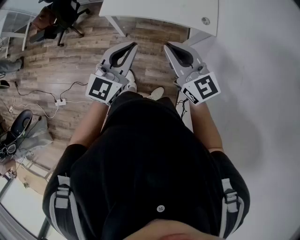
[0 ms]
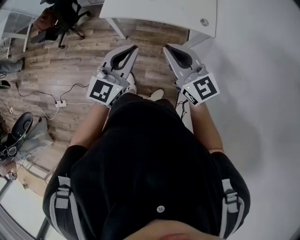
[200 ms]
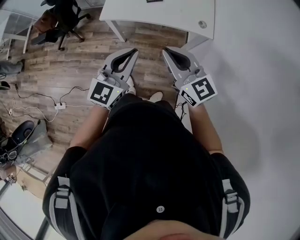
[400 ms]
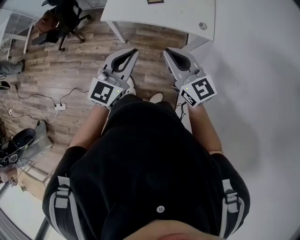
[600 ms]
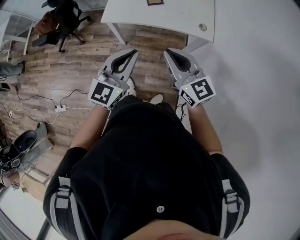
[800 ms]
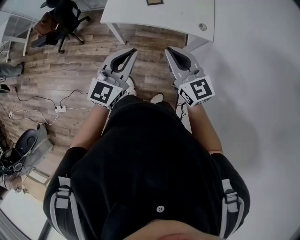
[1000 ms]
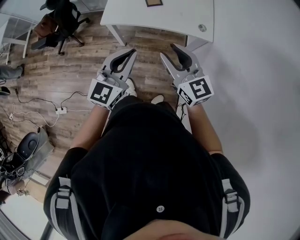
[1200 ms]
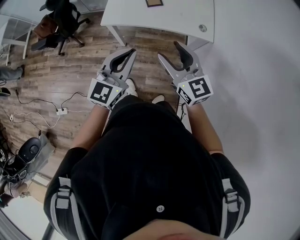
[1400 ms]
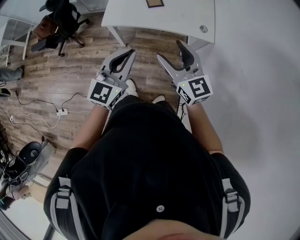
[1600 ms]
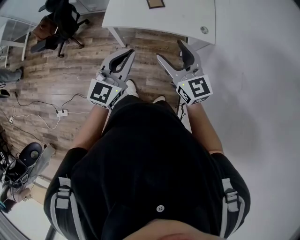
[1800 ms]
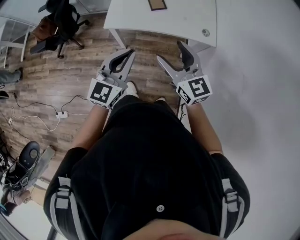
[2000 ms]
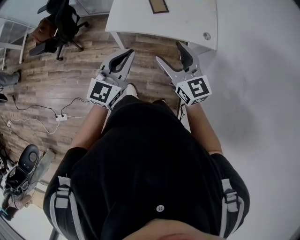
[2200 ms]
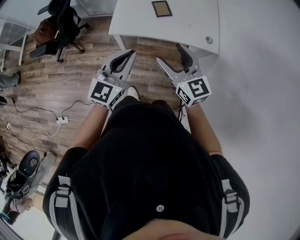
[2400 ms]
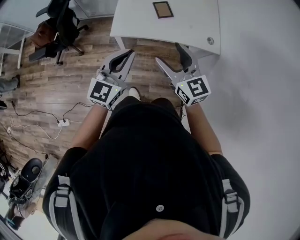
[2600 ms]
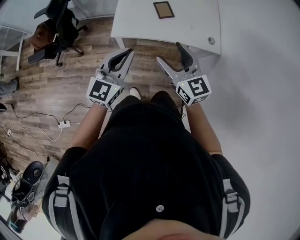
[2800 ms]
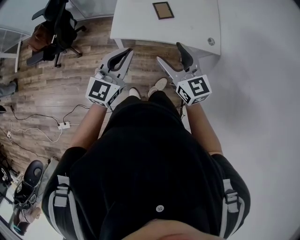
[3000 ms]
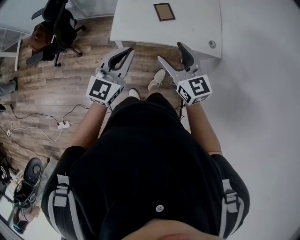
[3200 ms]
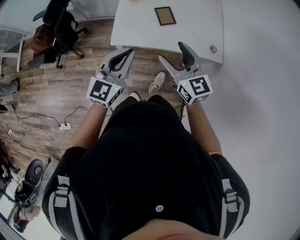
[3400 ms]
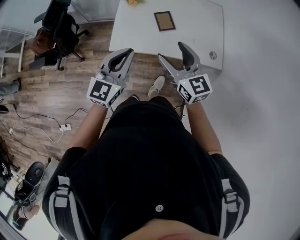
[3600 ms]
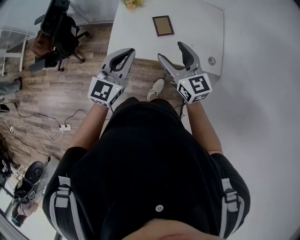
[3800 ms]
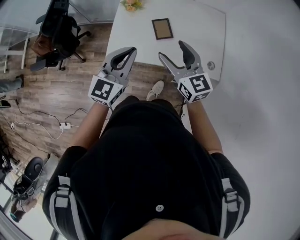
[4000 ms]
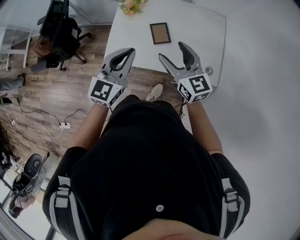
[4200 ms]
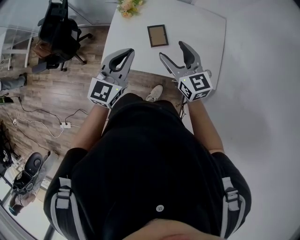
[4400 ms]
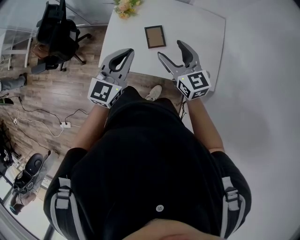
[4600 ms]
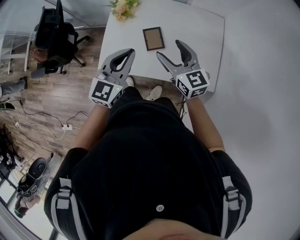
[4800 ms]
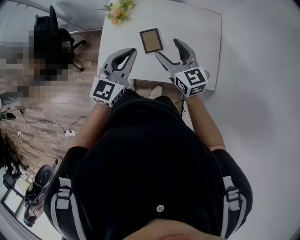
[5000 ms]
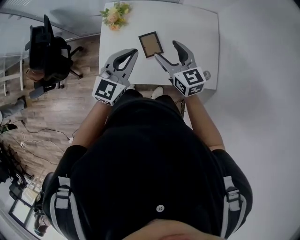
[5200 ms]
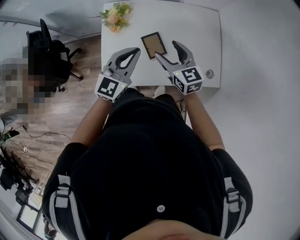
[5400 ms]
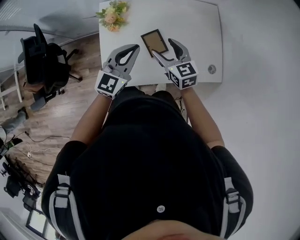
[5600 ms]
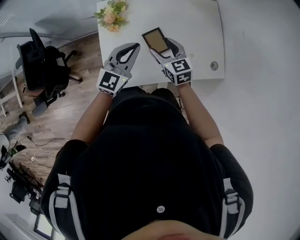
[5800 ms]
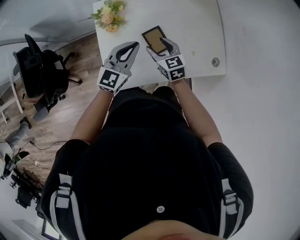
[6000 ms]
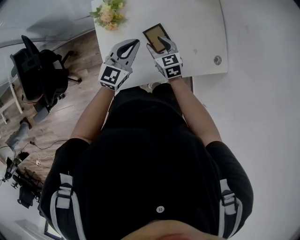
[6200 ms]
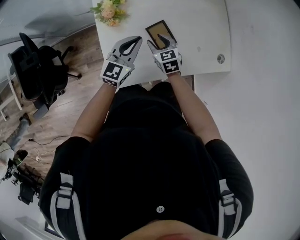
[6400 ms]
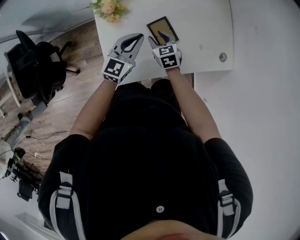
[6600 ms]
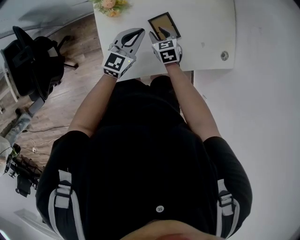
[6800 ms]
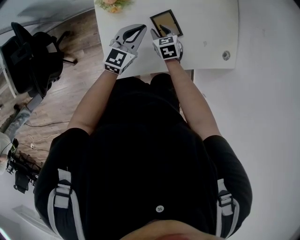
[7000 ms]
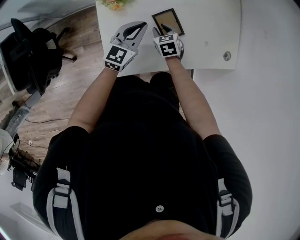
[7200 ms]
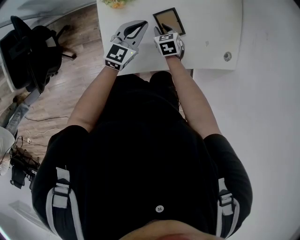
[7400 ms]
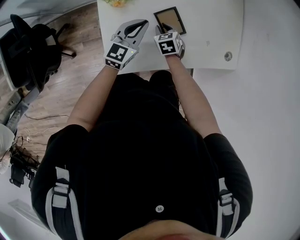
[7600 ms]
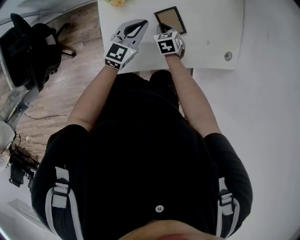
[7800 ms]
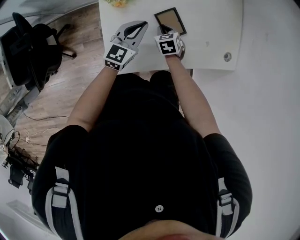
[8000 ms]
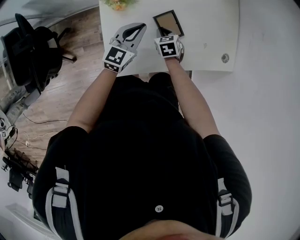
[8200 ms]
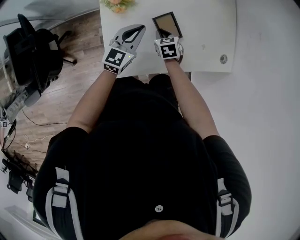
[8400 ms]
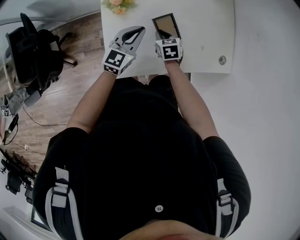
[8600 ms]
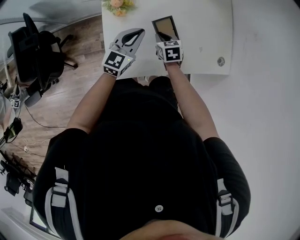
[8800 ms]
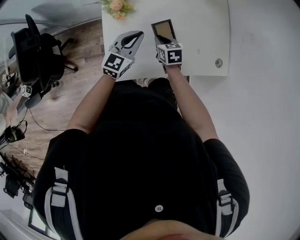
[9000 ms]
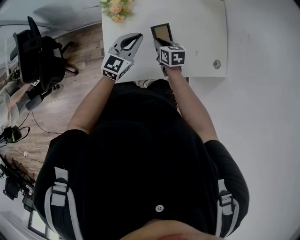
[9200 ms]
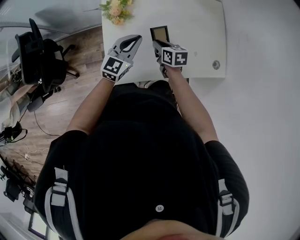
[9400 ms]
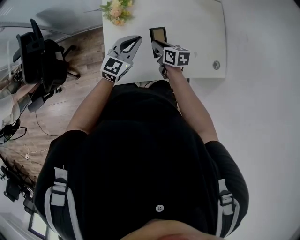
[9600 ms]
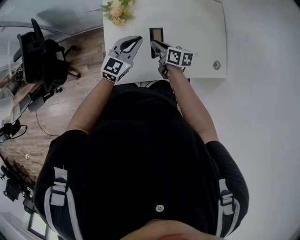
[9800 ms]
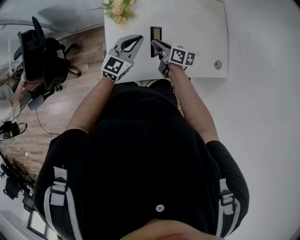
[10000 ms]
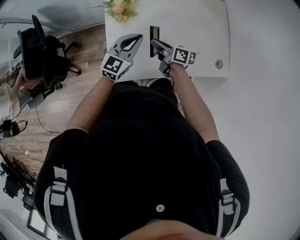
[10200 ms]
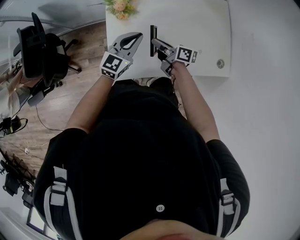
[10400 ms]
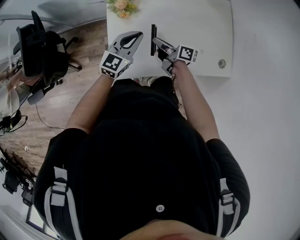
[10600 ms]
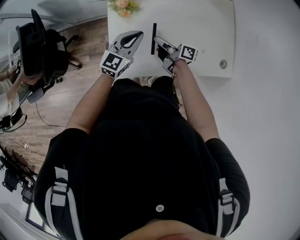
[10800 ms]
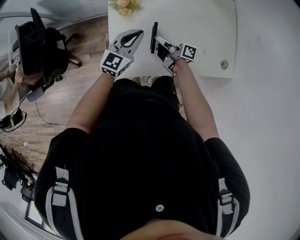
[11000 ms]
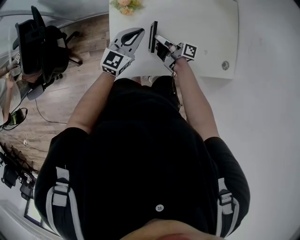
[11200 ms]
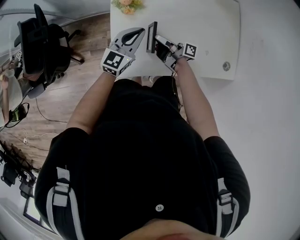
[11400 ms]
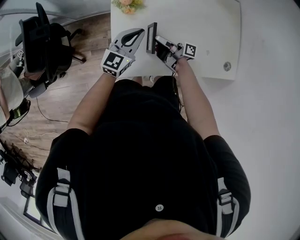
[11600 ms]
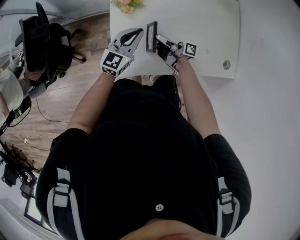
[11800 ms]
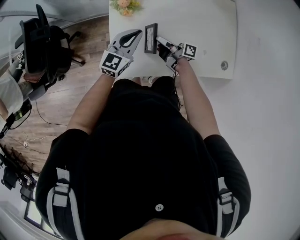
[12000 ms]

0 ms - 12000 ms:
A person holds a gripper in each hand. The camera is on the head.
0 ms - 1600 ms: The right gripper opens its fingers.
1600 ms - 3000 ms: Both grippers move to the left and forward, some 15 cm.
3000 ms - 4400 ms: The grippers both shift forward and to the right by approximately 25 cm.
4400 ms - 6000 ms: The left gripper heads forward and downward, covering about 25 cm, and turns by some 20 degrees. The right gripper is displaced downward, forward and to the left by some 25 cm, and rotates roughly 30 degrees.
6000 ms - 7600 ms: Both grippers move downward, about 15 cm. The right gripper rotates about 30 degrees, and closes its fingers.
7600 ms - 9000 ms: The grippers both shift upward by approximately 10 cm.
9000 ms - 10400 ms: The right gripper travels upward by roughly 5 cm, and tilts its fingers approximately 40 degrees upward.
10400 ms - 12000 ms: The right gripper rotates approximately 20 degrees.

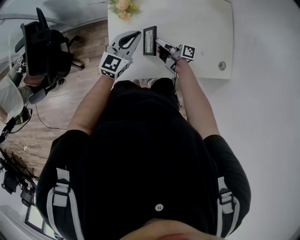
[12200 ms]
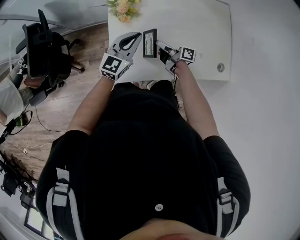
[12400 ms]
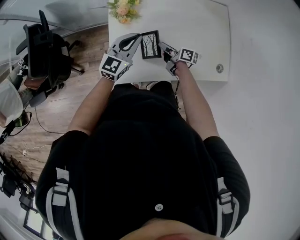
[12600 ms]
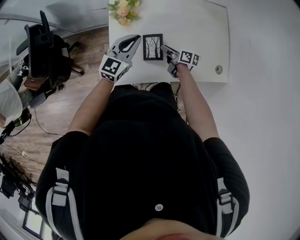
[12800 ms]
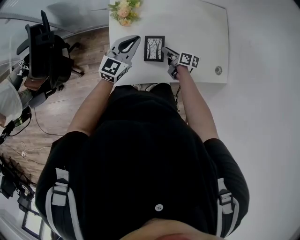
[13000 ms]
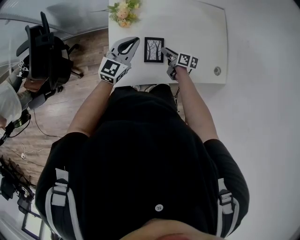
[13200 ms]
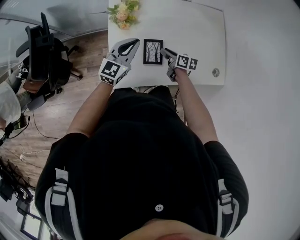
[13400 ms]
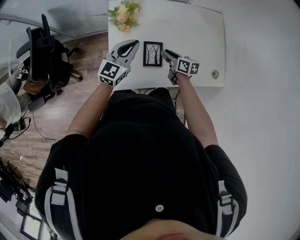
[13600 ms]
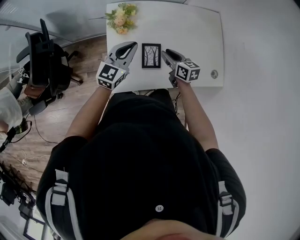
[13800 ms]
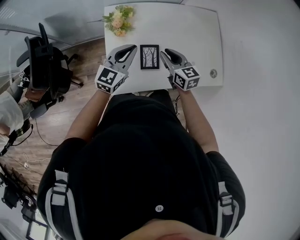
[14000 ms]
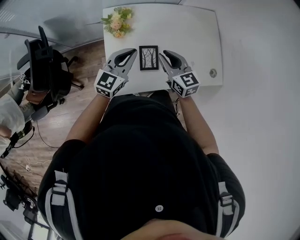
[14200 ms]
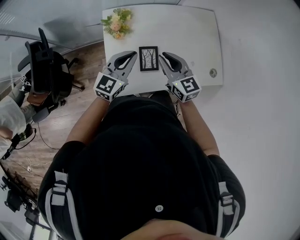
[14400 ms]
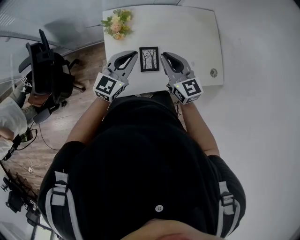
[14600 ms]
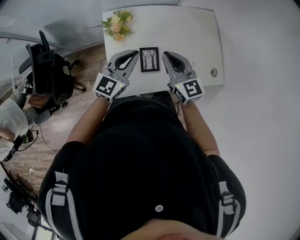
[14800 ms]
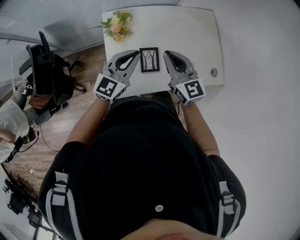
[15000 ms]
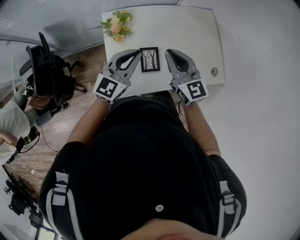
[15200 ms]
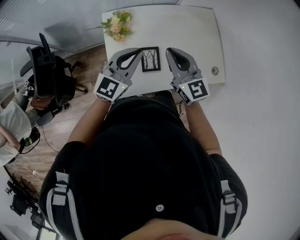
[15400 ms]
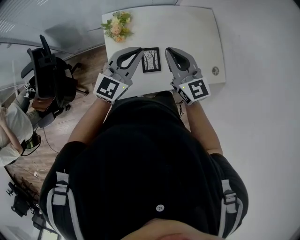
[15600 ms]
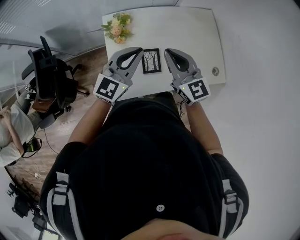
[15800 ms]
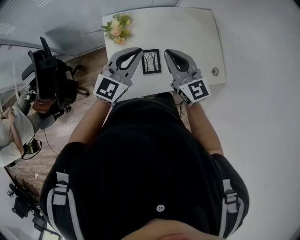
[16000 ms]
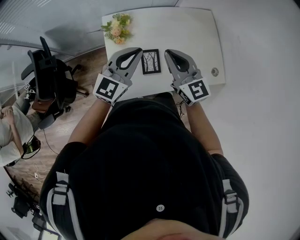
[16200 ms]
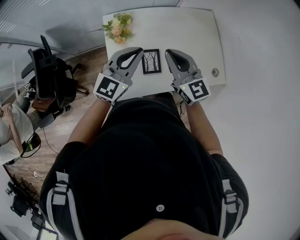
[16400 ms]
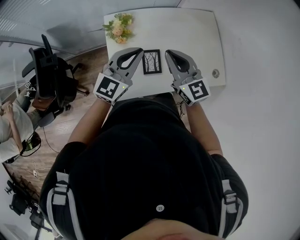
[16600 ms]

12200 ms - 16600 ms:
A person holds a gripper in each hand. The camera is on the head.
12200 ms - 13600 ms: The right gripper ends up about 5 cm from where it was, and changes its angle by approximately 40 degrees.
13600 ms - 15200 ms: The left gripper goes about 10 cm upward. Meanwhile the right gripper shifts about 25 cm upward, and rotates around the line of its fingers by approximately 40 degrees, counterclockwise from behind.
15200 ms - 16600 ms: There are only small adjustments of the grippers.

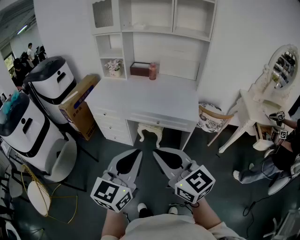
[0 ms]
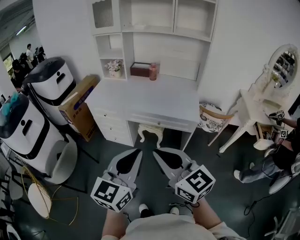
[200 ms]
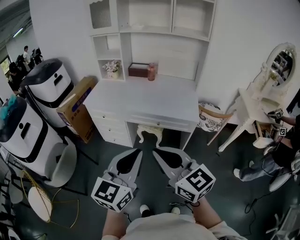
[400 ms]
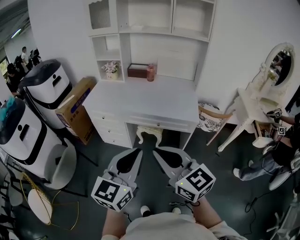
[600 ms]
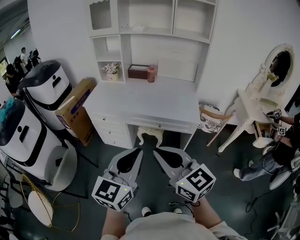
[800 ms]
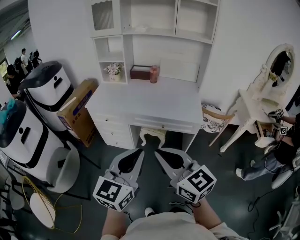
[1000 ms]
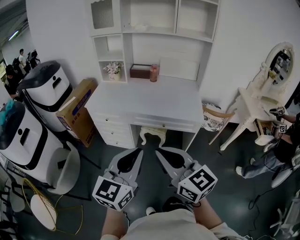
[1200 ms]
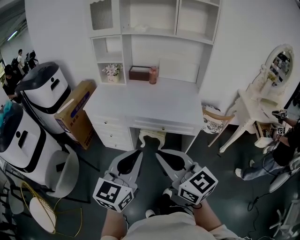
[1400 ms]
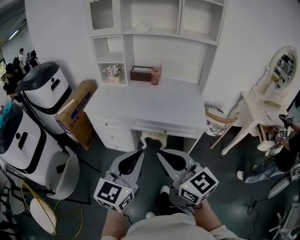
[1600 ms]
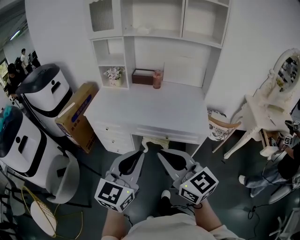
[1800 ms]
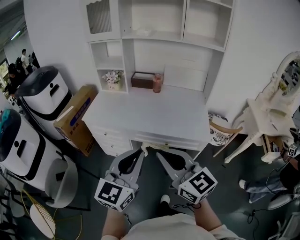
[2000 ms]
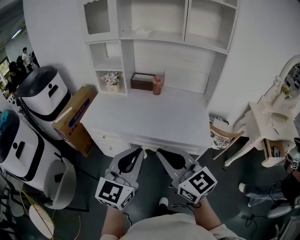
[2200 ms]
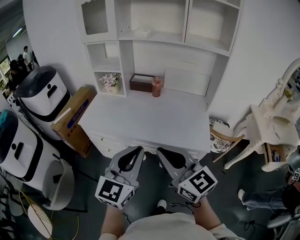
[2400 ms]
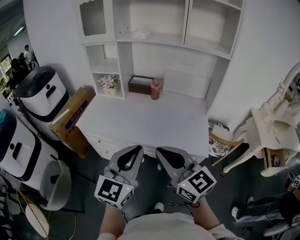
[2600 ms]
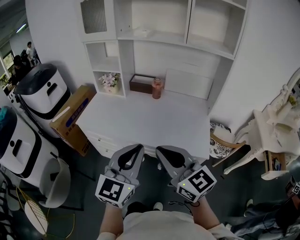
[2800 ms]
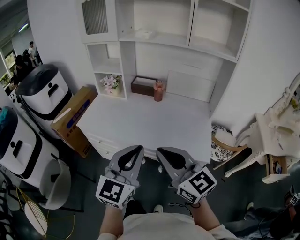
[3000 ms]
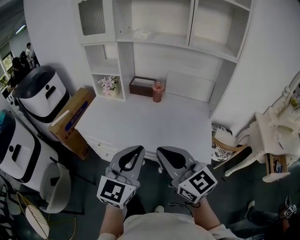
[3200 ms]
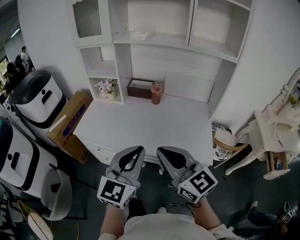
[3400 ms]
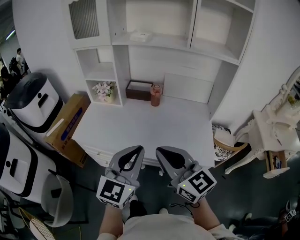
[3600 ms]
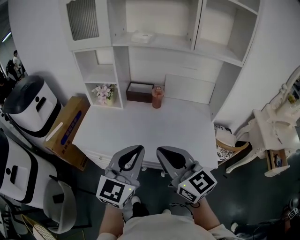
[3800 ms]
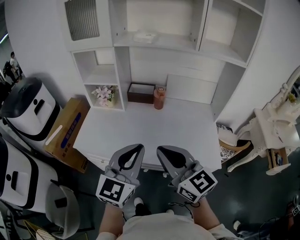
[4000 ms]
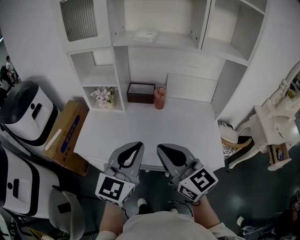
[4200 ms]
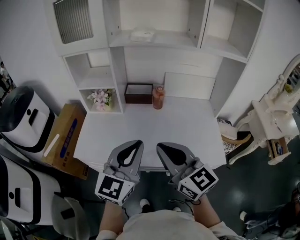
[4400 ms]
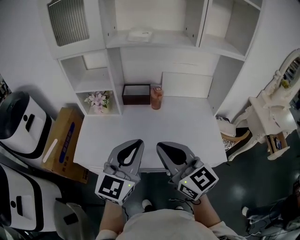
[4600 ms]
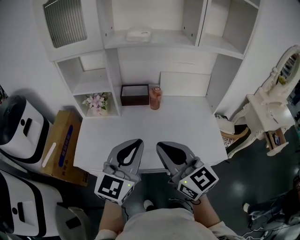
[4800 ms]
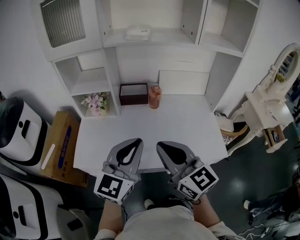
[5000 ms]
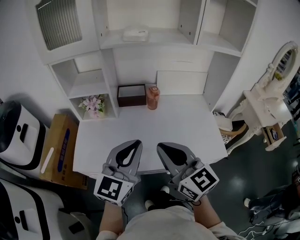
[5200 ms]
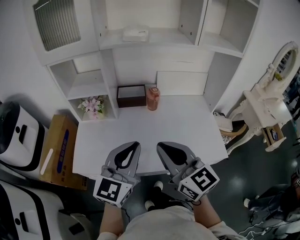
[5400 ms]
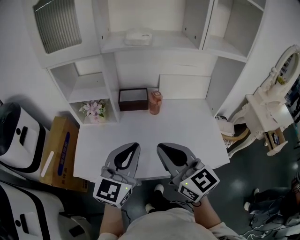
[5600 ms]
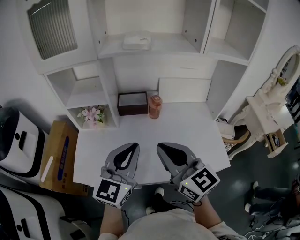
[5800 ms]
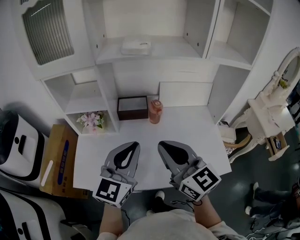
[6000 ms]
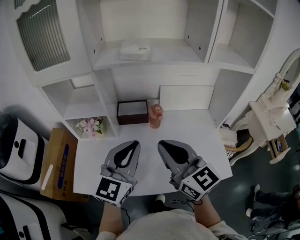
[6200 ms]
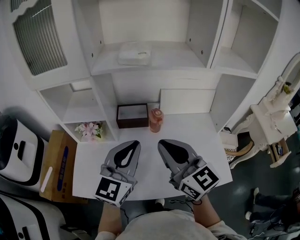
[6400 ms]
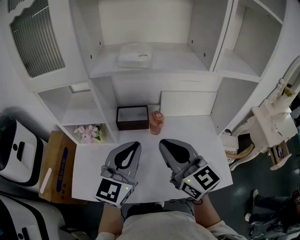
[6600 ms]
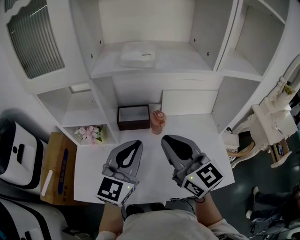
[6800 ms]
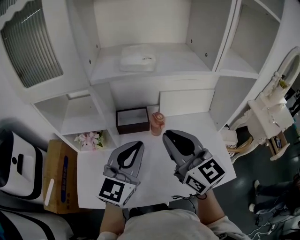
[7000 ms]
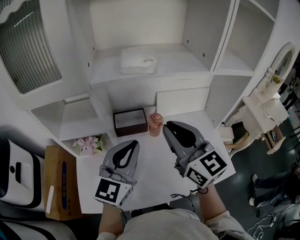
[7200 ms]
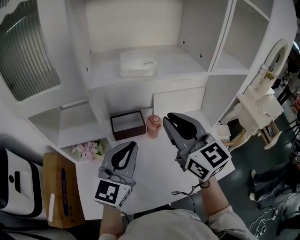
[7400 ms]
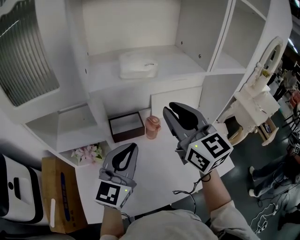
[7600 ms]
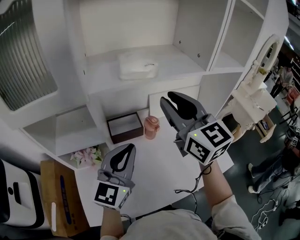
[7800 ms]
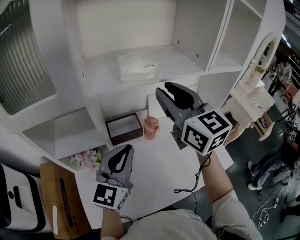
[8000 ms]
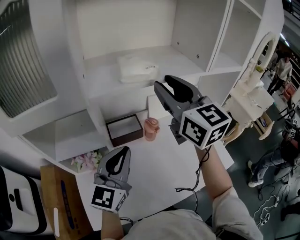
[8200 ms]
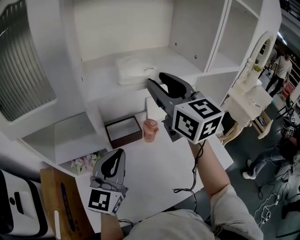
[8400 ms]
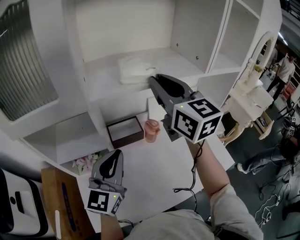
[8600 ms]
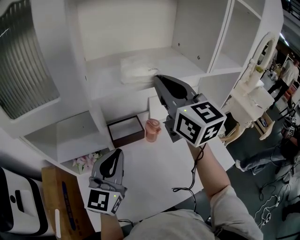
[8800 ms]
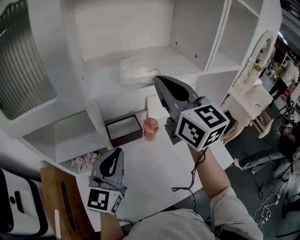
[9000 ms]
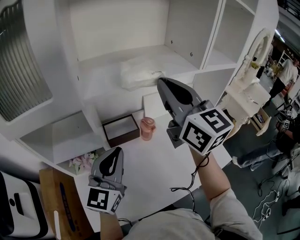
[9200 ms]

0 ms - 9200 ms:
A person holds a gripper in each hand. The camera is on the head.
0 ms - 1600 ms: Both grippers travel together forward and to the left, approximately 10 cm.
1600 ms - 3000 ms: Both grippers travel together forward and to the right, approximately 25 cm.
3000 ms - 4600 ms: Both grippers travel together forward and to the left, roughly 25 cm.
4600 ms - 6200 ms: Both grippers travel together forward, approximately 15 cm.
6200 ms - 7600 ms: The left gripper is displaced forward and to the left by roughly 10 cm. Meanwhile the right gripper heads forward and upward, covering approximately 15 cm, and turns by some 20 degrees.
7600 ms - 9200 ms: The right gripper heads upward, covering approximately 5 cm.
